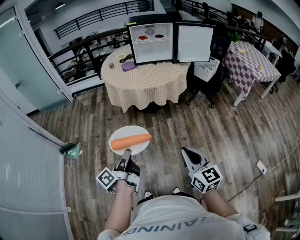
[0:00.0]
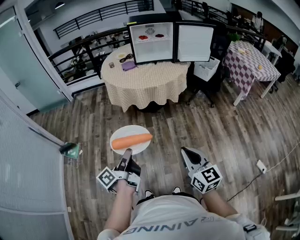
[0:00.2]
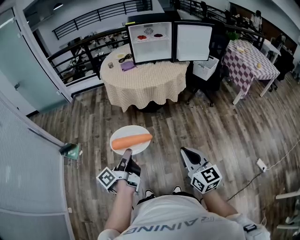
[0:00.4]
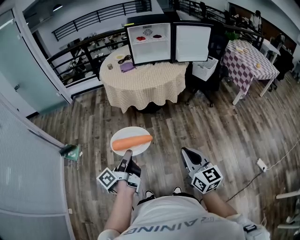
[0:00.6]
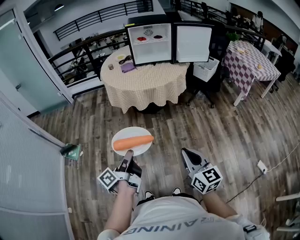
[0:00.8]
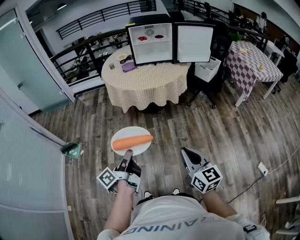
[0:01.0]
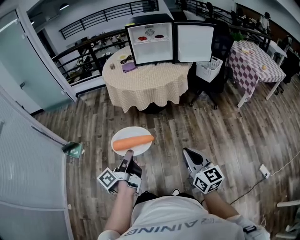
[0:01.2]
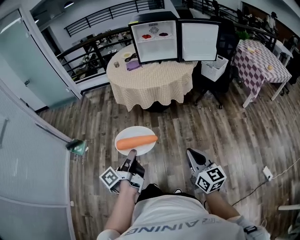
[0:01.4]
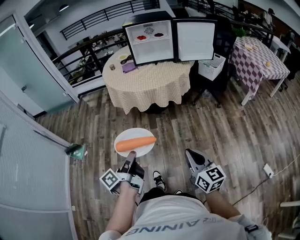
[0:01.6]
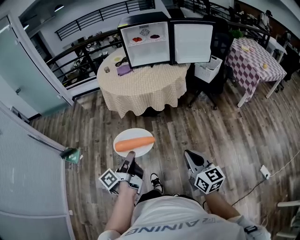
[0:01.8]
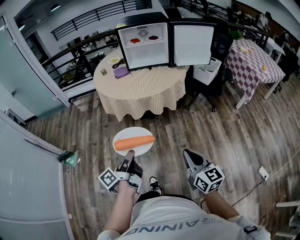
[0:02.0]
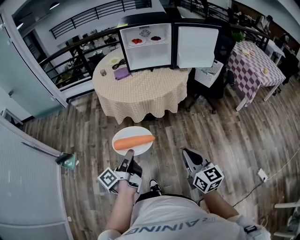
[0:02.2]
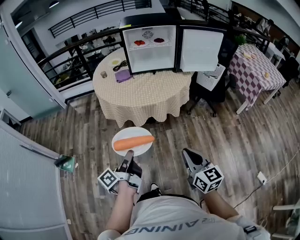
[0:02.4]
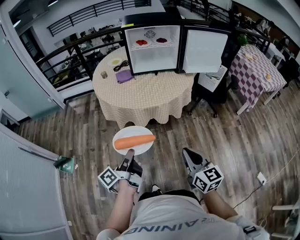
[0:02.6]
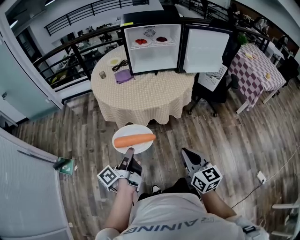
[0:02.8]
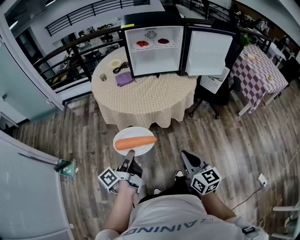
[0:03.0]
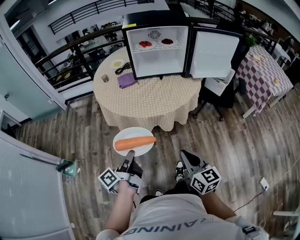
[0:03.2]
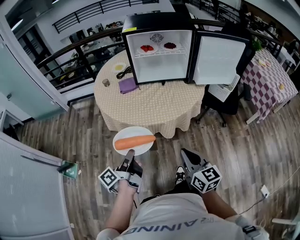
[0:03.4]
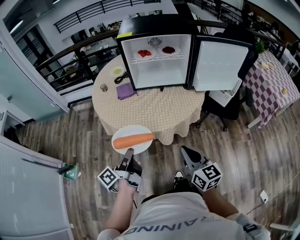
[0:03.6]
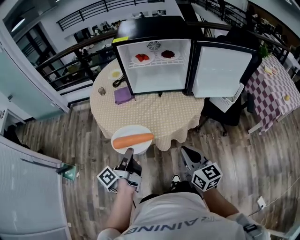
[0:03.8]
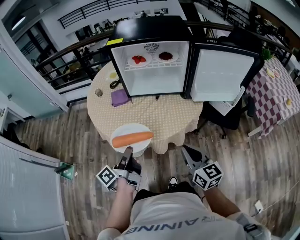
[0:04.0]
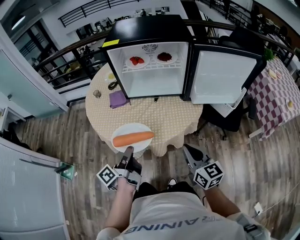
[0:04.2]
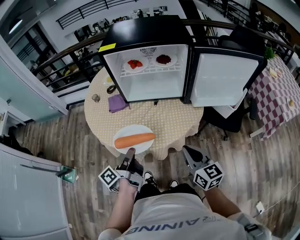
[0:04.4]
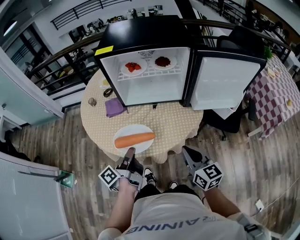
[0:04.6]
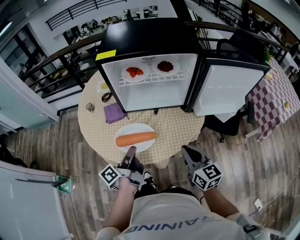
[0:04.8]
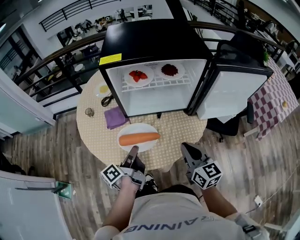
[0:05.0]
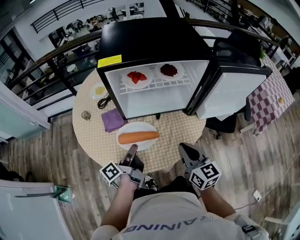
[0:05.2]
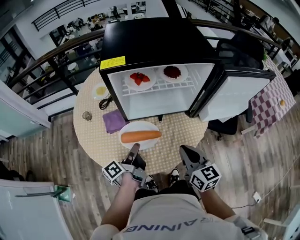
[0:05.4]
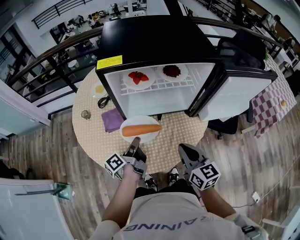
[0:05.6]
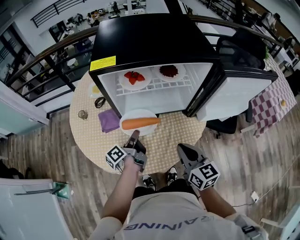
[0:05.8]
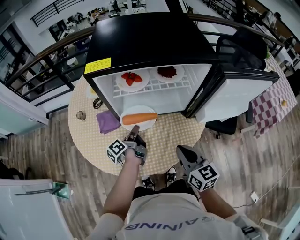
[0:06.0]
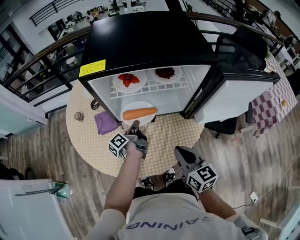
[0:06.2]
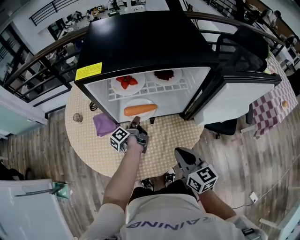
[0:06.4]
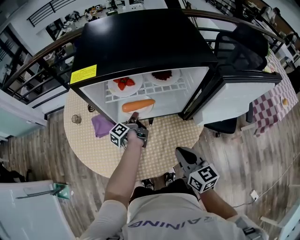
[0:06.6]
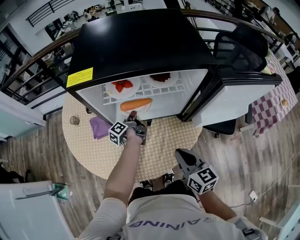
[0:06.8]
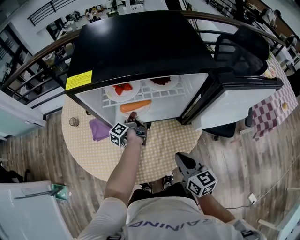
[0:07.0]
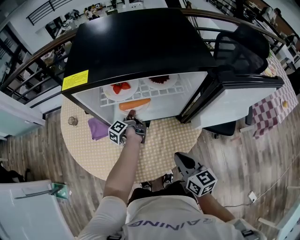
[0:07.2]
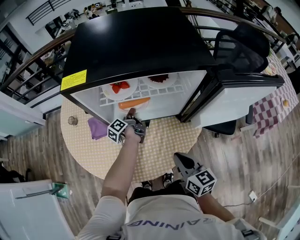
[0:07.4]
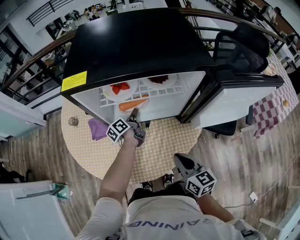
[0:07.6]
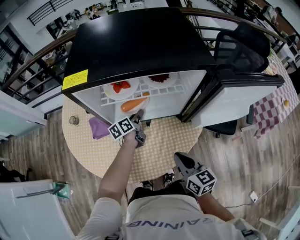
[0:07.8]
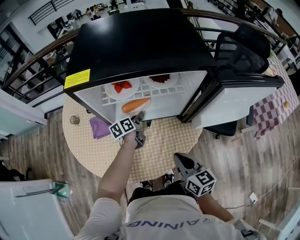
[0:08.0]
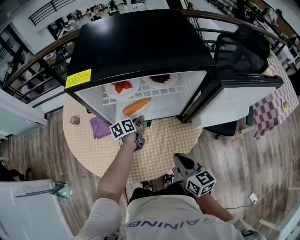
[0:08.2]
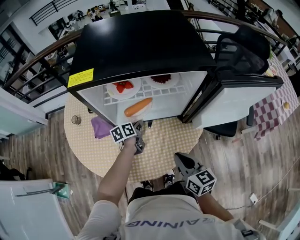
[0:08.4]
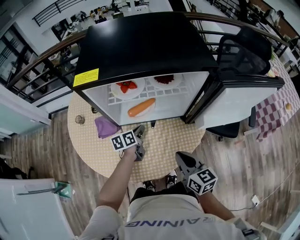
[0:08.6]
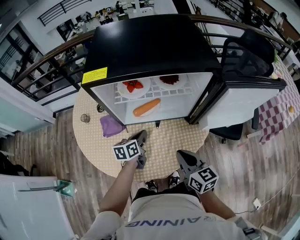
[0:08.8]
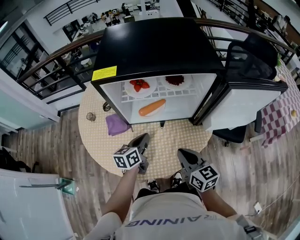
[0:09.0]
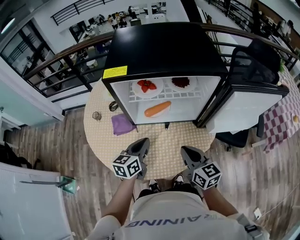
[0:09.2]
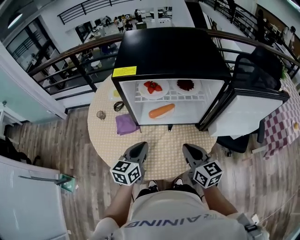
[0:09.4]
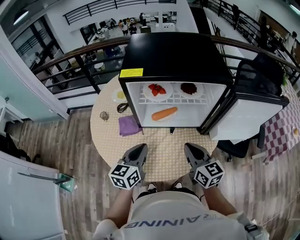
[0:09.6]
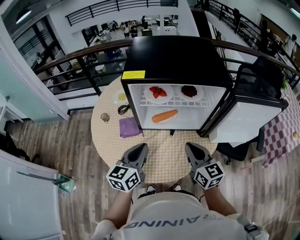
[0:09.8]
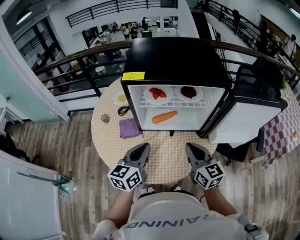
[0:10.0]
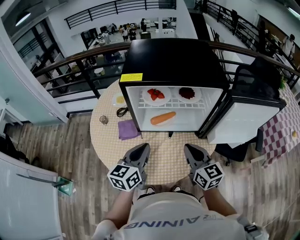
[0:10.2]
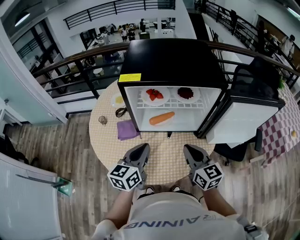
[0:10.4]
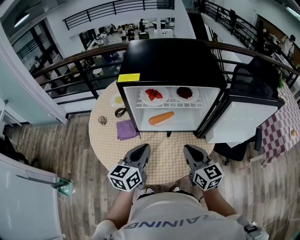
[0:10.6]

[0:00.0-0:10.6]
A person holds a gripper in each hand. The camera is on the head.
0:00.0 to 0:01.6: The right gripper changes place by roughly 10 cm.
0:01.6 to 0:03.0: The right gripper ends up approximately 25 cm from where it was.
0:03.0 to 0:04.6: The right gripper moves about 35 cm.
0:04.6 to 0:06.0: The right gripper changes place by about 15 cm.
0:06.0 to 0:07.6: The right gripper ends up roughly 5 cm from where it was.
0:09.0 to 0:10.6: The right gripper heads upward, covering roughly 5 cm.

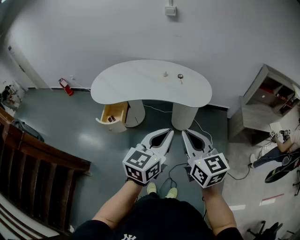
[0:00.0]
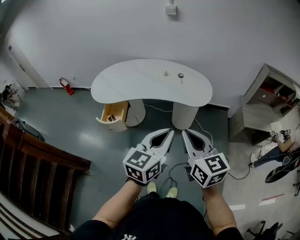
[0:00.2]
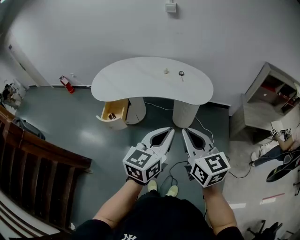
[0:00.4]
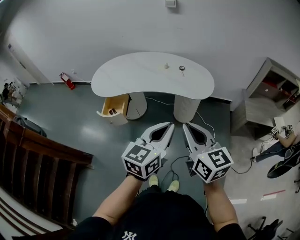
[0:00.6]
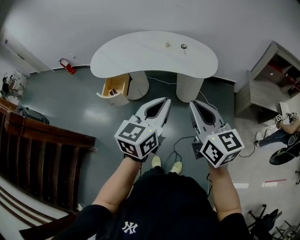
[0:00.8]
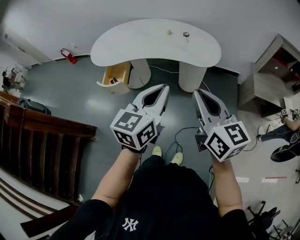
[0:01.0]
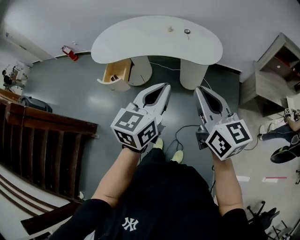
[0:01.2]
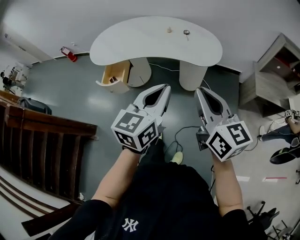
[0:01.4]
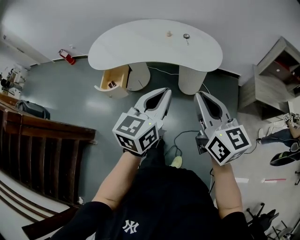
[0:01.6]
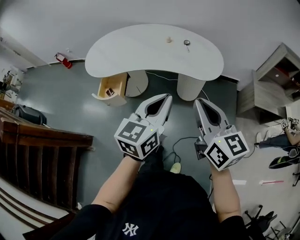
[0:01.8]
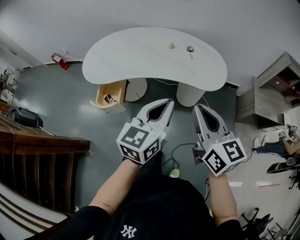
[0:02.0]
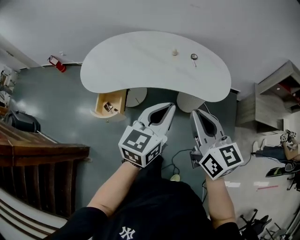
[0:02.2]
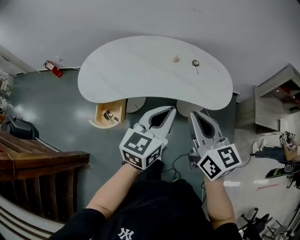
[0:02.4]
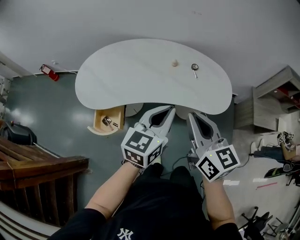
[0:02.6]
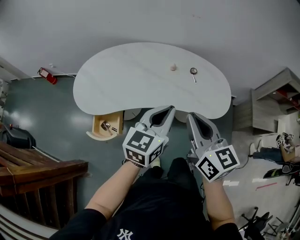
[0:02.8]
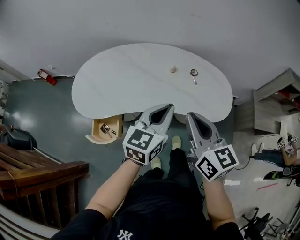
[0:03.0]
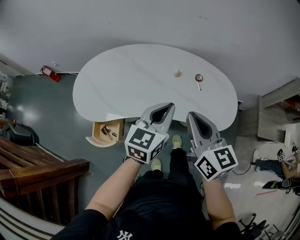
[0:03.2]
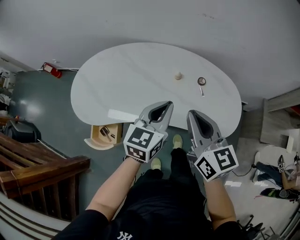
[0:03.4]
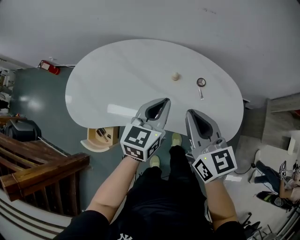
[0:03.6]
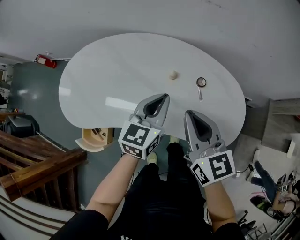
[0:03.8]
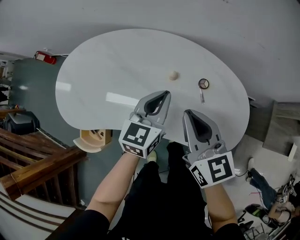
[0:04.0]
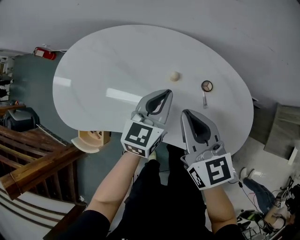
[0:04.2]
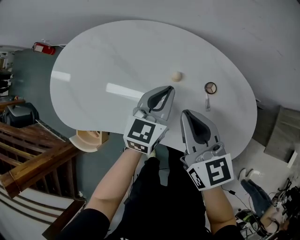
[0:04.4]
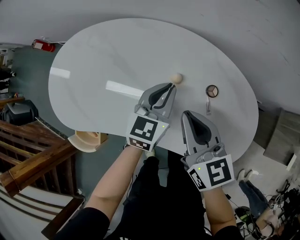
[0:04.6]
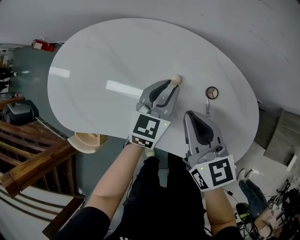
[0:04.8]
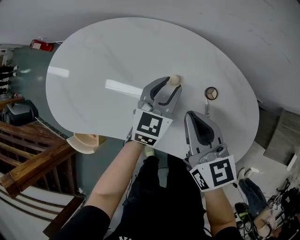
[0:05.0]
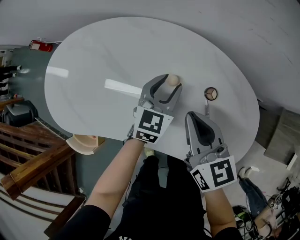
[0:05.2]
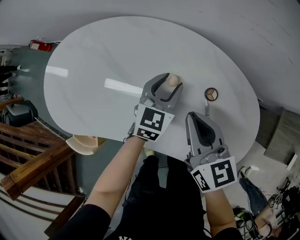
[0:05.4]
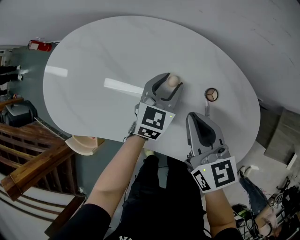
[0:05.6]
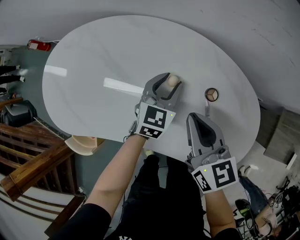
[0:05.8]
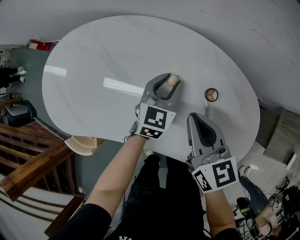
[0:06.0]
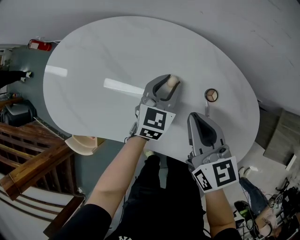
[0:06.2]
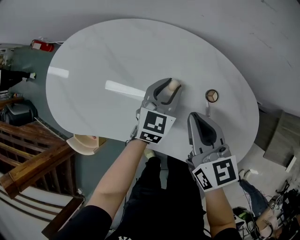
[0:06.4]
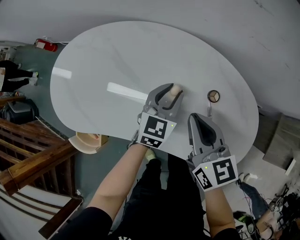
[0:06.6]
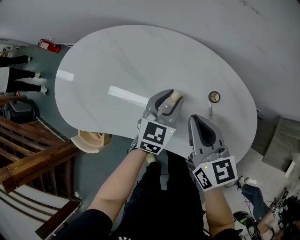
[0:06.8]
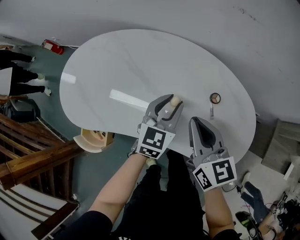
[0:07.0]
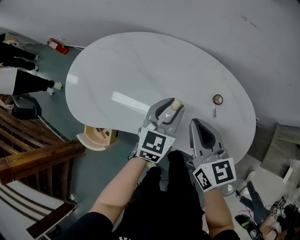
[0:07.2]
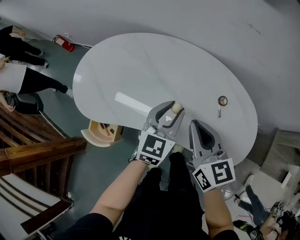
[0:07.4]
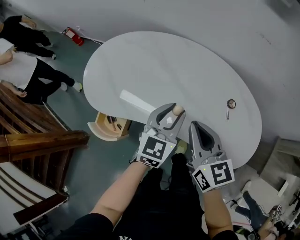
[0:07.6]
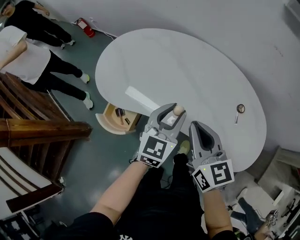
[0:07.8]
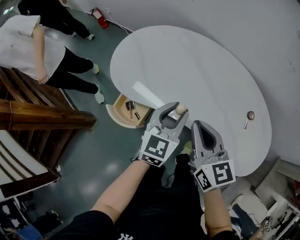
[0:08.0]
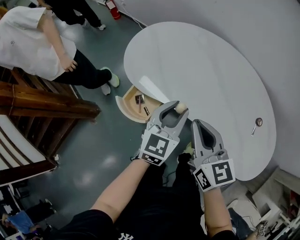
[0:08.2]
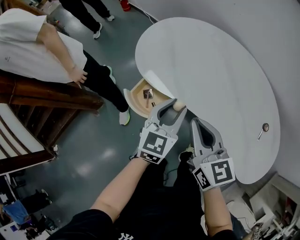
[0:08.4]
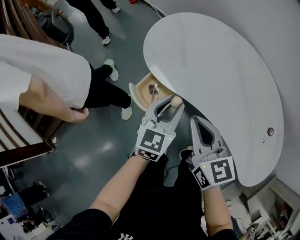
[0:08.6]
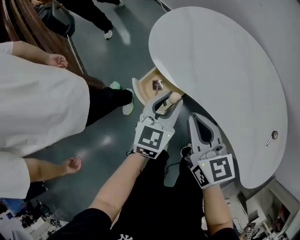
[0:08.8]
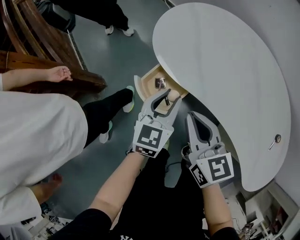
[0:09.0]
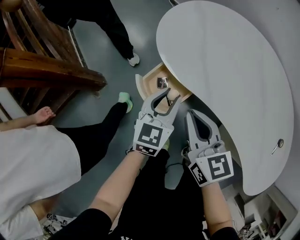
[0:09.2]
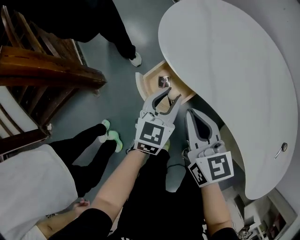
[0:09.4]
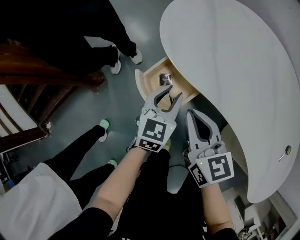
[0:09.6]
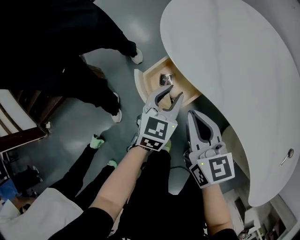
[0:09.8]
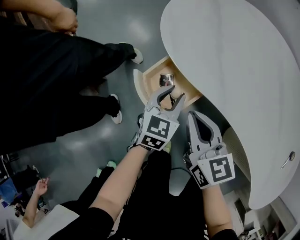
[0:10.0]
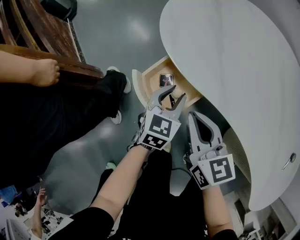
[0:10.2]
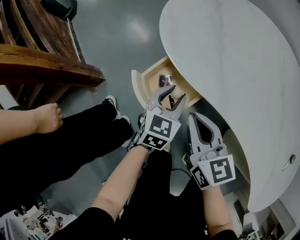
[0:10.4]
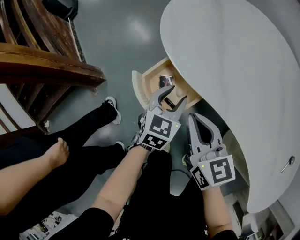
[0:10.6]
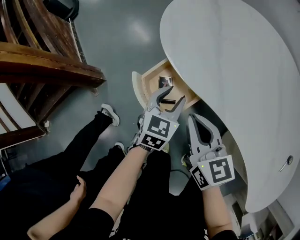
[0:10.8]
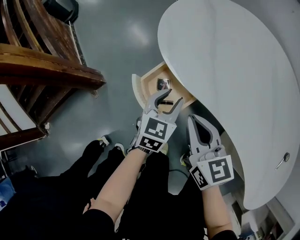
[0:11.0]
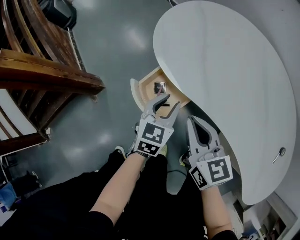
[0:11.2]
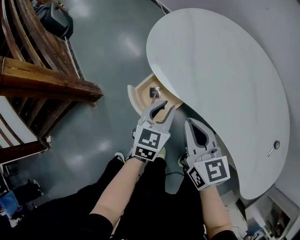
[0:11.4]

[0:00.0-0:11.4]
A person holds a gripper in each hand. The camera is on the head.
0:00.0 to 0:01.4: The right gripper is displaced to the right by about 5 cm.
0:01.4 to 0:02.8: The left gripper moves forward, roughly 30 cm, while the right gripper travels forward and to the left by approximately 35 cm.
0:02.8 to 0:04.2: The grippers both shift forward and downward by about 35 cm.
0:04.2 to 0:05.6: The left gripper heads downward and forward, covering roughly 15 cm, and opens; the right gripper travels downward by roughly 10 cm.
0:05.6 to 0:07.2: The two grippers go about 15 cm upward, backward and to the left.
0:07.2 to 0:08.6: The left gripper changes place by approximately 40 cm, and changes its angle by about 30 degrees. The right gripper moves about 35 cm, and rotates roughly 30 degrees.
0:08.6 to 0:10.0: The left gripper shifts about 20 cm downward. The right gripper moves downward and to the left, some 20 cm.
0:10.0 to 0:11.4: Both grippers move upward, about 10 cm.

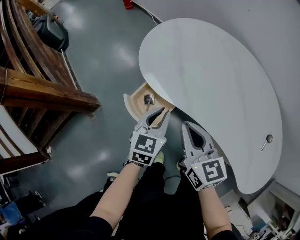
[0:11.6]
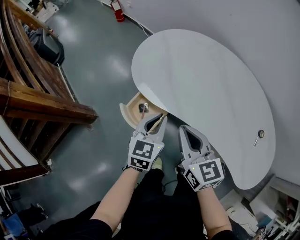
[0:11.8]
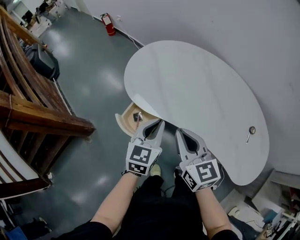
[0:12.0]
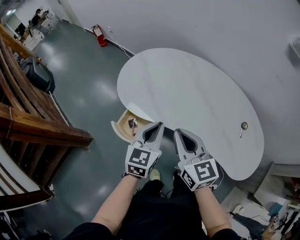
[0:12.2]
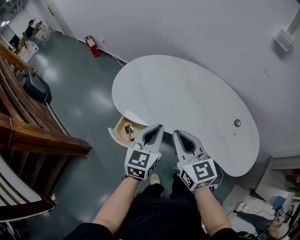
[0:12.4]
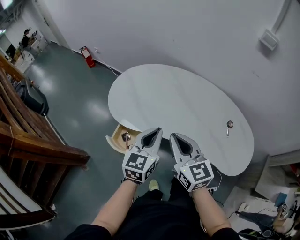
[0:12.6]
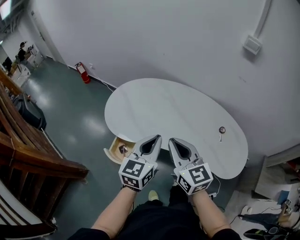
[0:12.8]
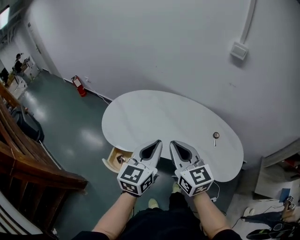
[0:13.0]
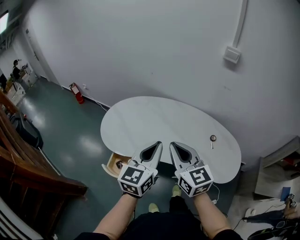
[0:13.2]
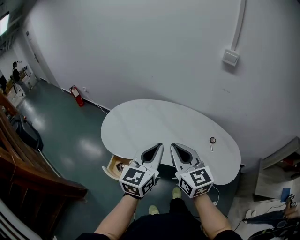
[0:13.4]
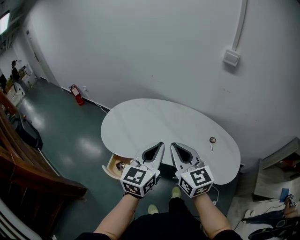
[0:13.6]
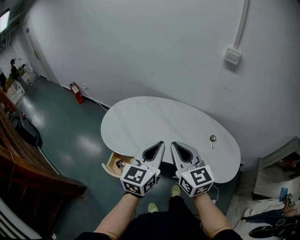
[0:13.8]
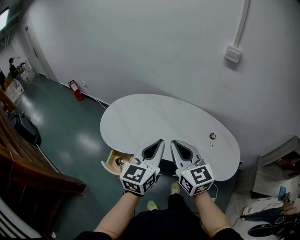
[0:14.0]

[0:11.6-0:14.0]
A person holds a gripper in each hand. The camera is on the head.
0:11.6 to 0:12.8: The grippers both shift upward and to the right by some 25 cm. The left gripper rotates some 30 degrees; the right gripper swivels roughly 20 degrees.
0:12.8 to 0:14.0: The two grippers go roughly 5 cm upward.
